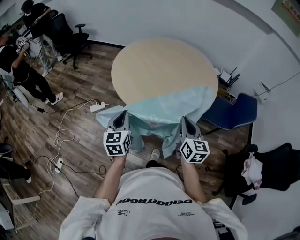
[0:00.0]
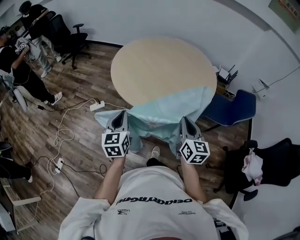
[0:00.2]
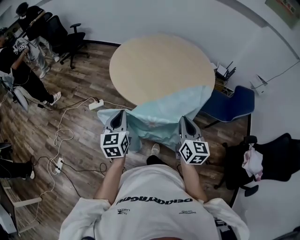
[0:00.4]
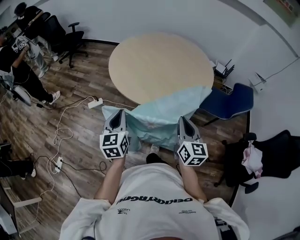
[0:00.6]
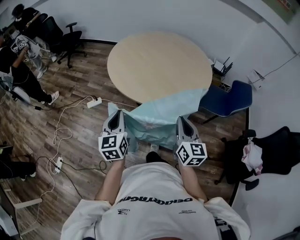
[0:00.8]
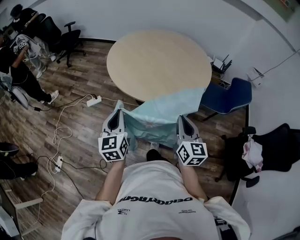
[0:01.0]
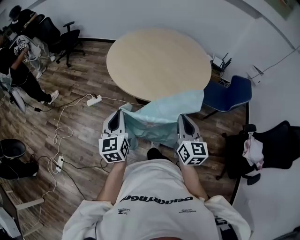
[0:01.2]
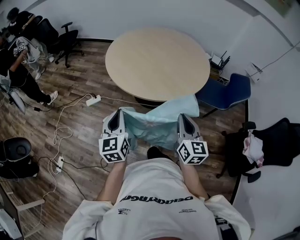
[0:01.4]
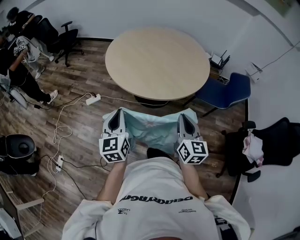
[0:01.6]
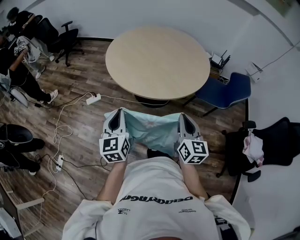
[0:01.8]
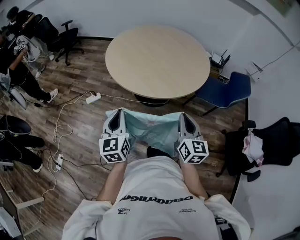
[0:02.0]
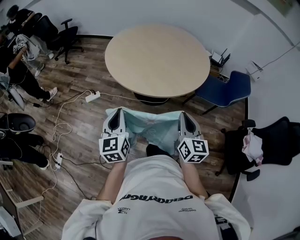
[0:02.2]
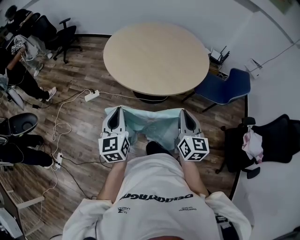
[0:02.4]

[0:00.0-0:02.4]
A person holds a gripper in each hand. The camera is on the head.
0:00.0 to 0:01.2: The grippers both shift backward by roughly 10 cm.
0:01.2 to 0:02.4: The grippers stay close to where they were, moving slightly.

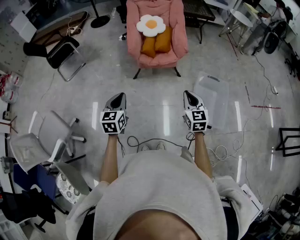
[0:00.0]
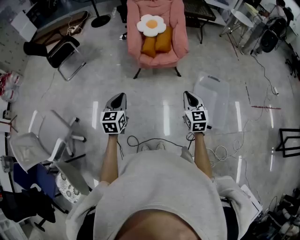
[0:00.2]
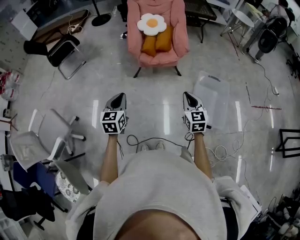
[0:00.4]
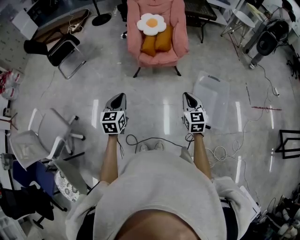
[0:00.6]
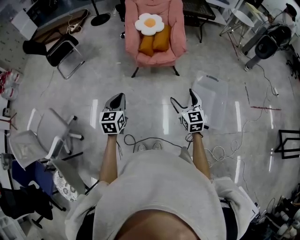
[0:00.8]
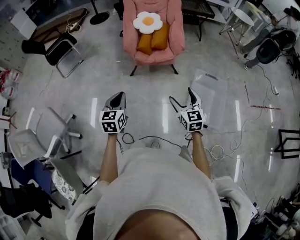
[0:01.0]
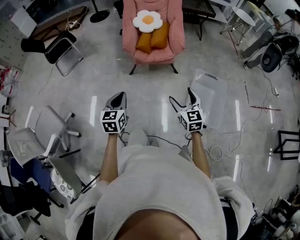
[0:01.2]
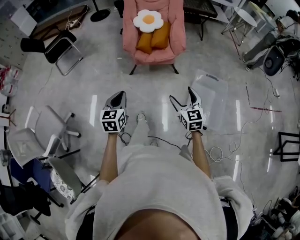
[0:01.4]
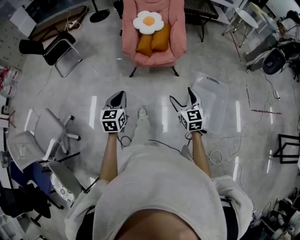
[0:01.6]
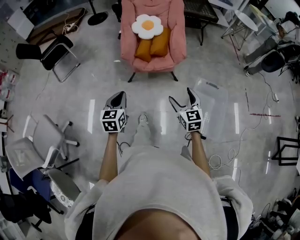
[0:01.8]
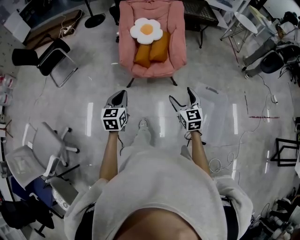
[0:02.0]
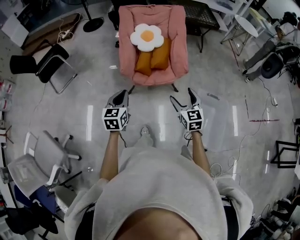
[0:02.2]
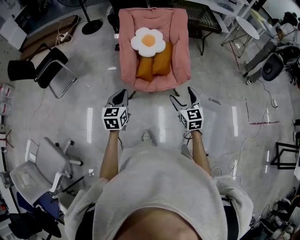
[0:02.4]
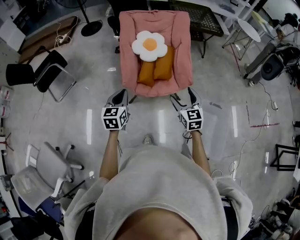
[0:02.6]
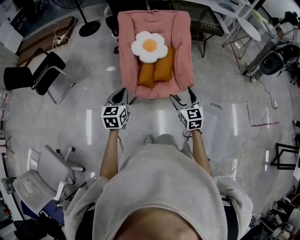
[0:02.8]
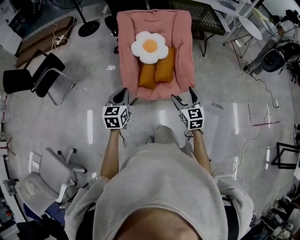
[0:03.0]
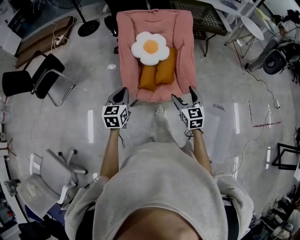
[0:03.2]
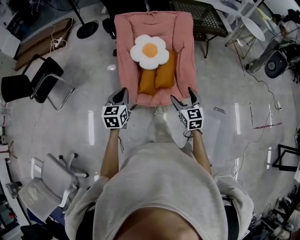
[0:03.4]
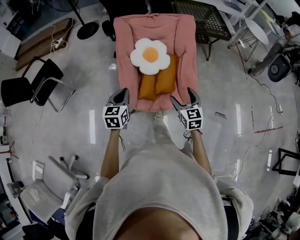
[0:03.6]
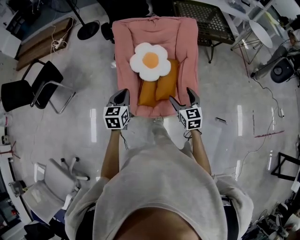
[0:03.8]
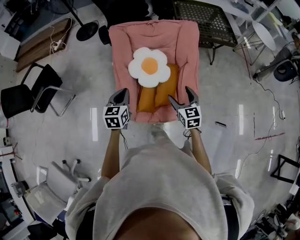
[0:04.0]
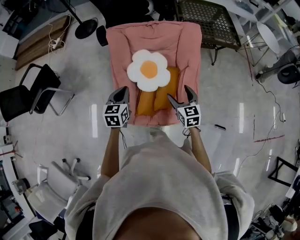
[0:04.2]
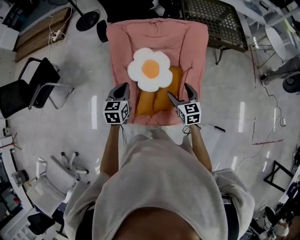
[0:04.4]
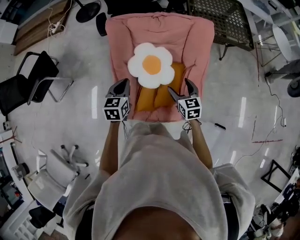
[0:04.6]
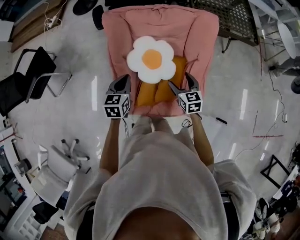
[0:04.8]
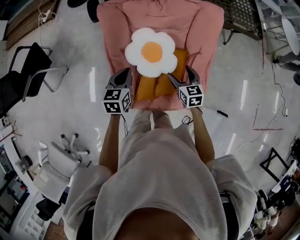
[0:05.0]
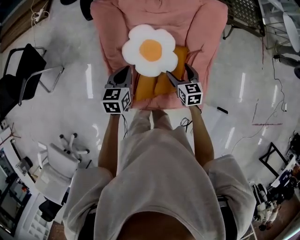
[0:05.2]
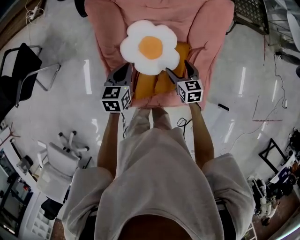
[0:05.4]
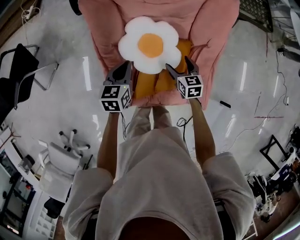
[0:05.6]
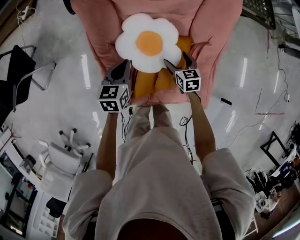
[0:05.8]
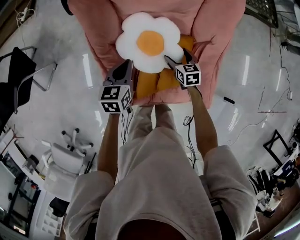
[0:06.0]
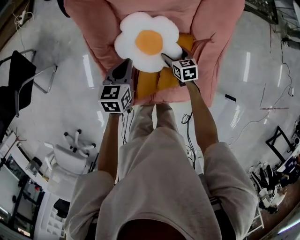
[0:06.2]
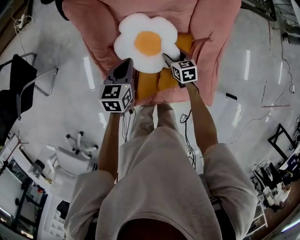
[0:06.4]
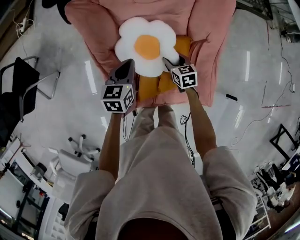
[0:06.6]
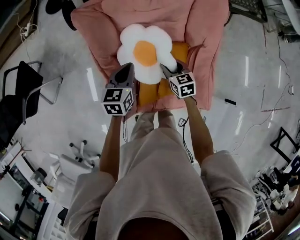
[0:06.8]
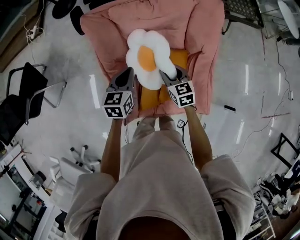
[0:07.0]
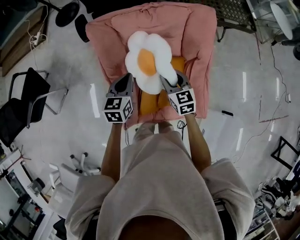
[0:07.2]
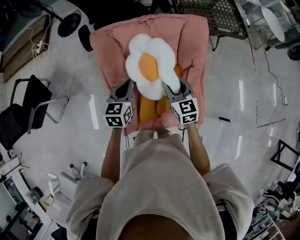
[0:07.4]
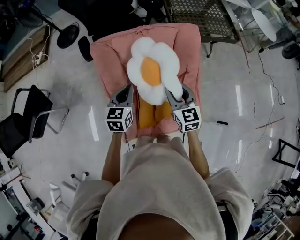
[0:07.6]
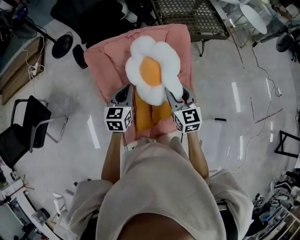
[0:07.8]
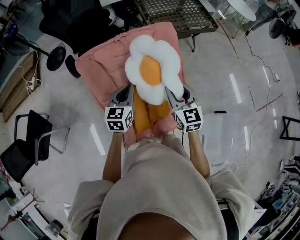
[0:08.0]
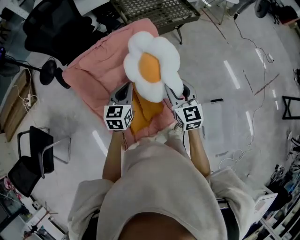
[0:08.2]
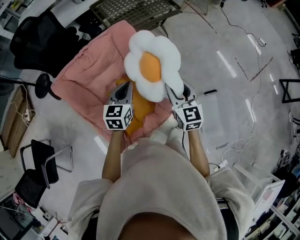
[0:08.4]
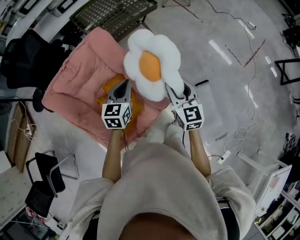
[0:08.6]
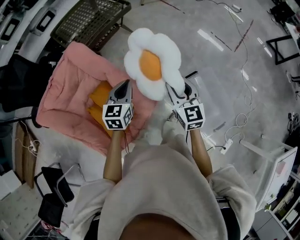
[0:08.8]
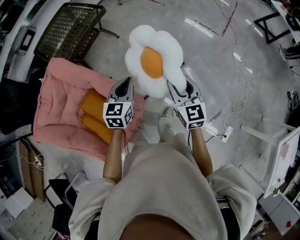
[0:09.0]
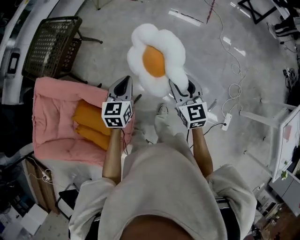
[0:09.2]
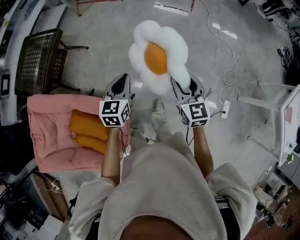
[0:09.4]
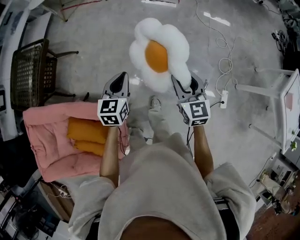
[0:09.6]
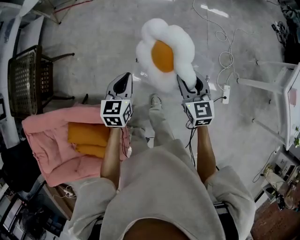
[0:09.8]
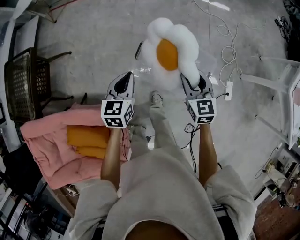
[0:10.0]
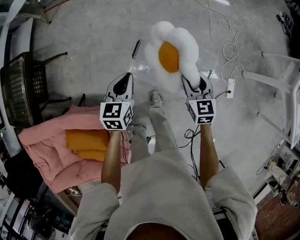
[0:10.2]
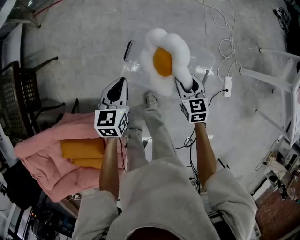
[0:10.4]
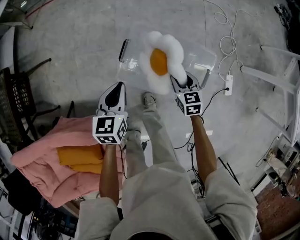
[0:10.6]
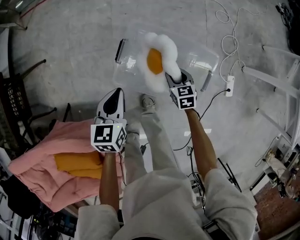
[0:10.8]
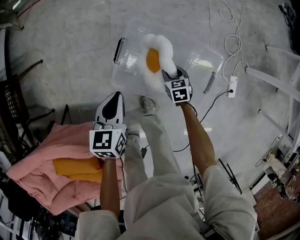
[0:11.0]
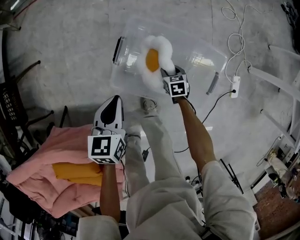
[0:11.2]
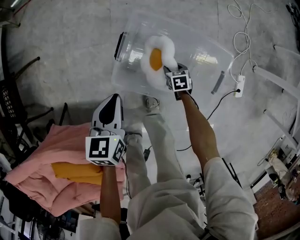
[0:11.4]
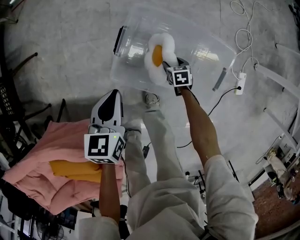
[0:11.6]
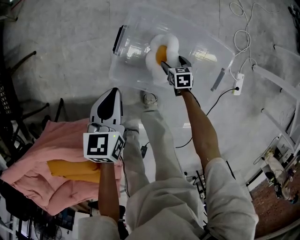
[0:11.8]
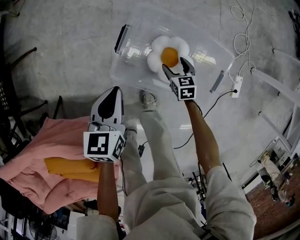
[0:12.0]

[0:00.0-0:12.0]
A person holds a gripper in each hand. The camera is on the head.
0:00.0 to 0:01.6: The right gripper travels forward by some 5 cm, and opens its fingers. The left gripper goes approximately 10 cm to the right and forward.
0:01.6 to 0:03.0: The two grippers travel together, forward, about 40 cm.
0:03.0 to 0:04.4: The two grippers travel together, forward, about 40 cm.
0:04.4 to 0:06.0: The two grippers go about 25 cm downward and forward. The right gripper rotates roughly 20 degrees.
0:06.0 to 0:07.6: The left gripper goes roughly 20 cm upward, while the right gripper shifts roughly 35 cm upward, swivels about 30 degrees, and closes up.
0:07.6 to 0:09.0: The two grippers travel together, approximately 60 cm. The left gripper turns by roughly 50 degrees, while the right gripper rotates approximately 50 degrees.
0:09.0 to 0:10.4: The right gripper ends up some 50 cm from where it was, and turns by about 40 degrees, while the left gripper moves roughly 40 cm, and swivels some 30 degrees.
0:10.4 to 0:12.0: The right gripper moves downward, approximately 35 cm; the left gripper is displaced downward by some 15 cm.

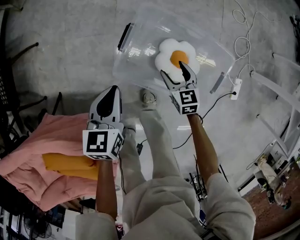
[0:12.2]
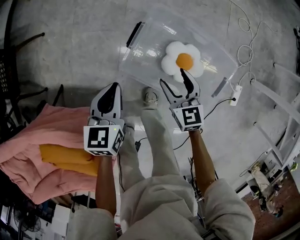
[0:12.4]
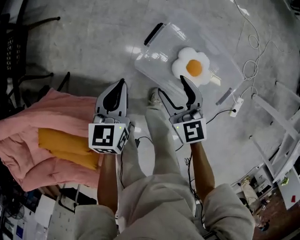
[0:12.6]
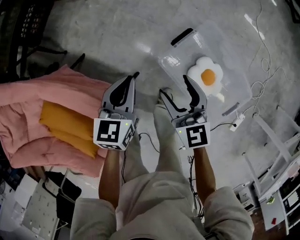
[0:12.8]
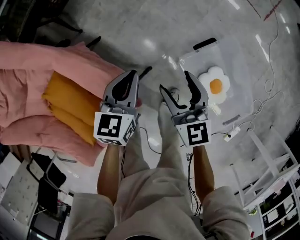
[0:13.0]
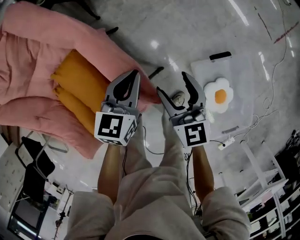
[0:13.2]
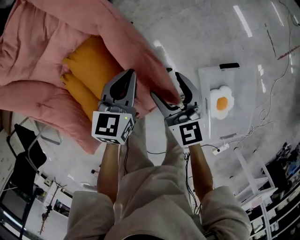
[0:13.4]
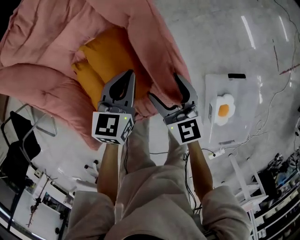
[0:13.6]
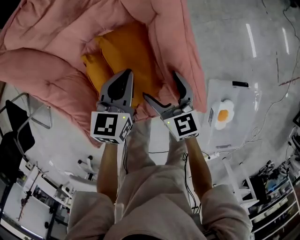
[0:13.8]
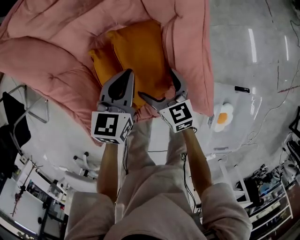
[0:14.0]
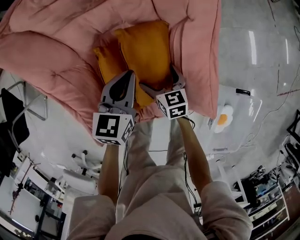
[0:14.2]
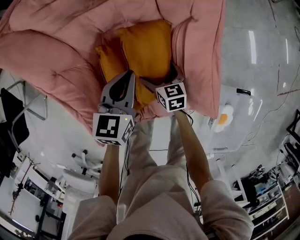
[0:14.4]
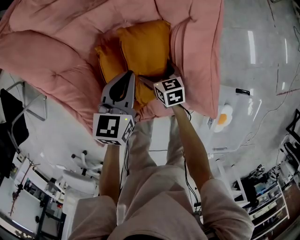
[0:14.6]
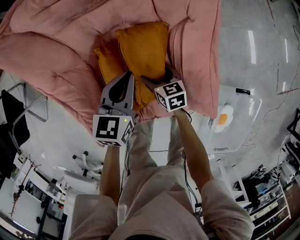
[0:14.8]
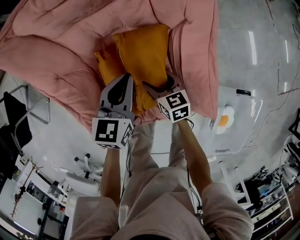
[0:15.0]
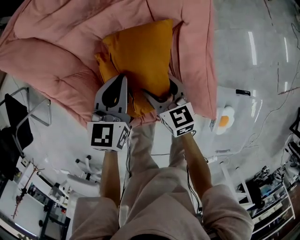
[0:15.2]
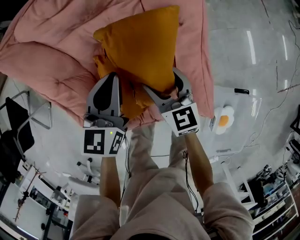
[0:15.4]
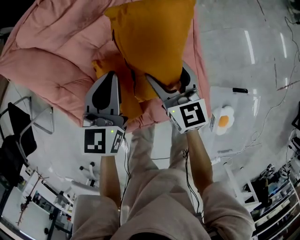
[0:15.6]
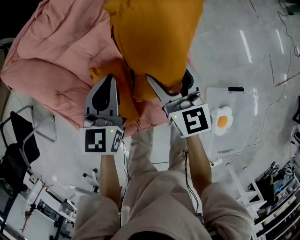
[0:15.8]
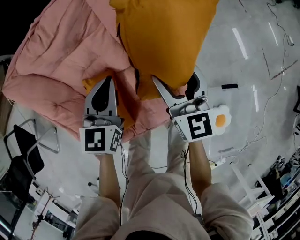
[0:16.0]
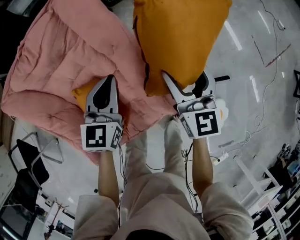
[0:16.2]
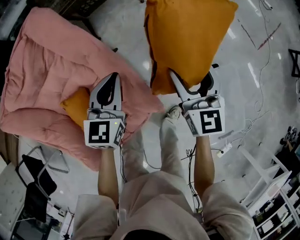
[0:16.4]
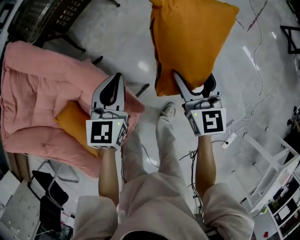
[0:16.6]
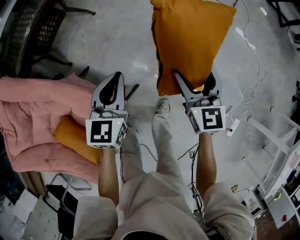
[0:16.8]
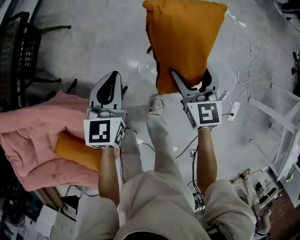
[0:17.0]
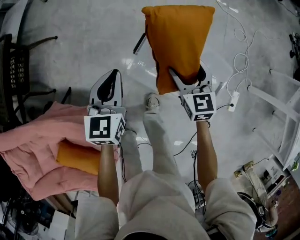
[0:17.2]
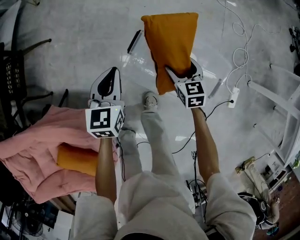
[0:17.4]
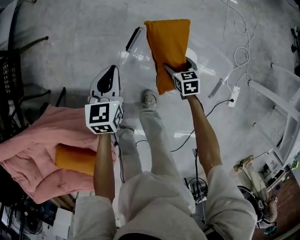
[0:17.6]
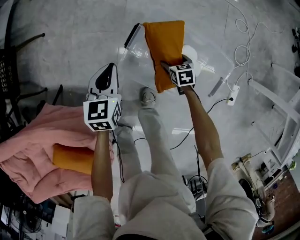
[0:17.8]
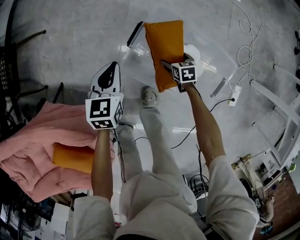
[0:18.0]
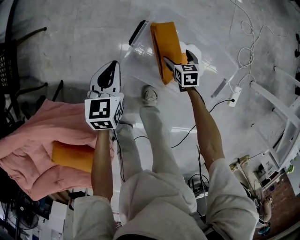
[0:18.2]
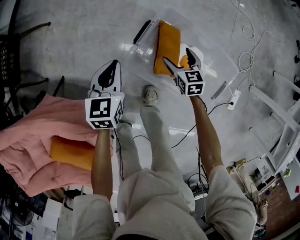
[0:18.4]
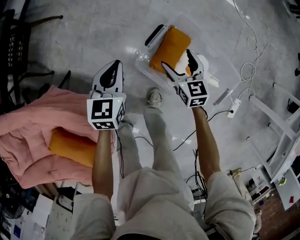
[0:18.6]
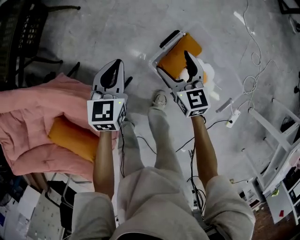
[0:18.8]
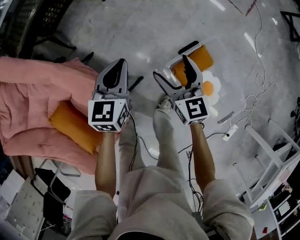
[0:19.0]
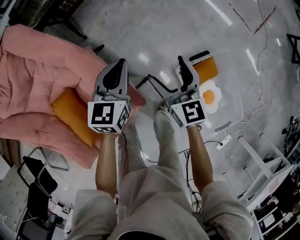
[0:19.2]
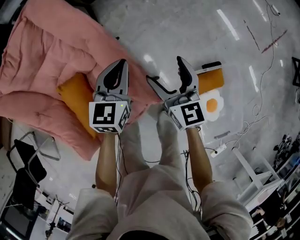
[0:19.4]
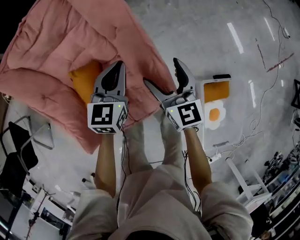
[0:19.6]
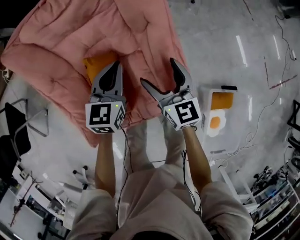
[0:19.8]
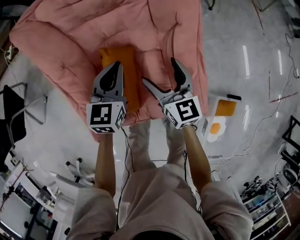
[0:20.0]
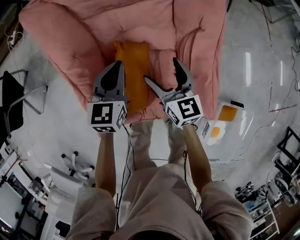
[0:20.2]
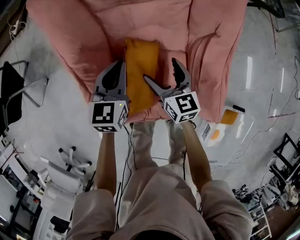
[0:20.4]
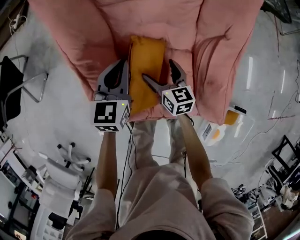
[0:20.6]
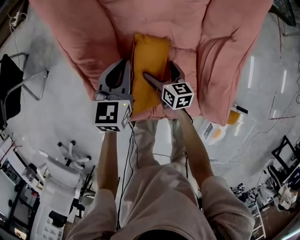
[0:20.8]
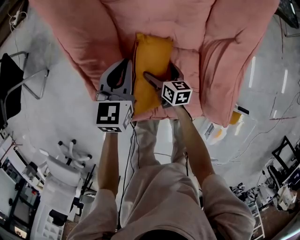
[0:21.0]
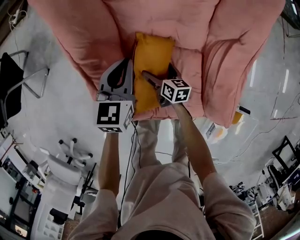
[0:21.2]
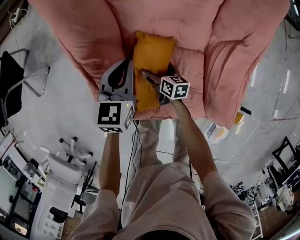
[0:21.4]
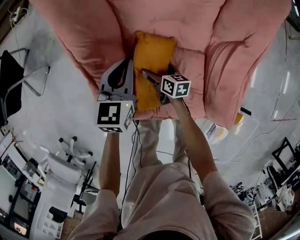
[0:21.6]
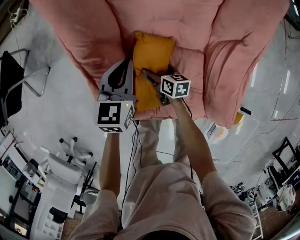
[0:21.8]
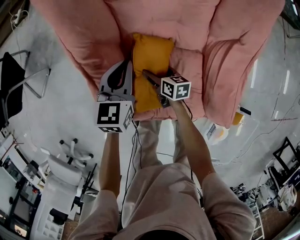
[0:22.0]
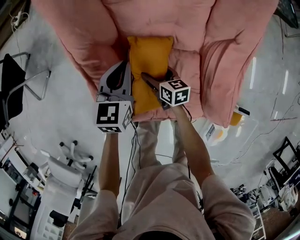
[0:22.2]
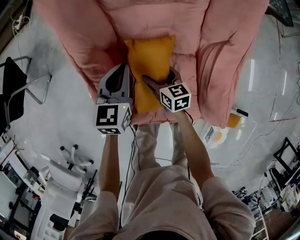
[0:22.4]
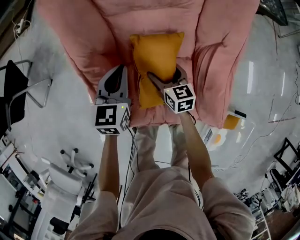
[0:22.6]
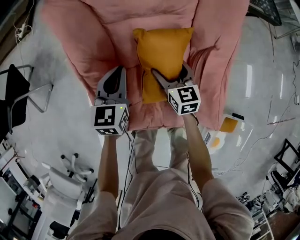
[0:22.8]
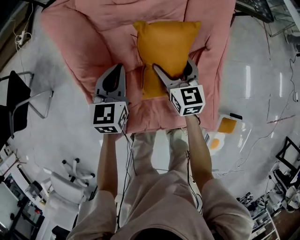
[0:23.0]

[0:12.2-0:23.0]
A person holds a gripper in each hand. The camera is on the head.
0:12.2 to 0:13.8: The two grippers travel together, approximately 70 cm. The left gripper rotates roughly 60 degrees. Meanwhile the right gripper swivels about 70 degrees.
0:13.8 to 0:15.2: The two grippers go approximately 10 cm to the left. The right gripper moves roughly 15 cm downward and comes back.
0:15.2 to 0:16.8: Both grippers are carried approximately 60 cm. The right gripper swivels about 60 degrees. The left gripper changes its angle by approximately 50 degrees.
0:16.8 to 0:18.4: The left gripper moves downward, to the right and forward, approximately 25 cm; the right gripper travels downward and to the right by some 35 cm, and swivels approximately 30 degrees.
0:18.4 to 0:20.0: Both grippers are carried about 80 cm. The right gripper turns by some 70 degrees, while the left gripper rotates approximately 60 degrees.
0:20.0 to 0:21.4: The left gripper heads to the left and downward, covering roughly 15 cm. The right gripper goes about 35 cm downward and to the left, and turns by about 40 degrees.
0:21.4 to 0:23.0: The right gripper shifts some 30 cm upward and to the right, and changes its angle by some 50 degrees. Meanwhile the left gripper shifts about 10 cm upward and to the right.
